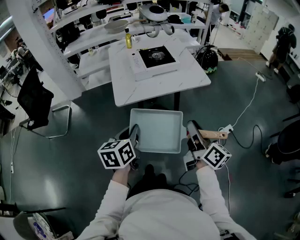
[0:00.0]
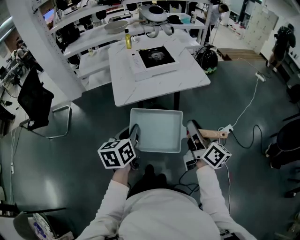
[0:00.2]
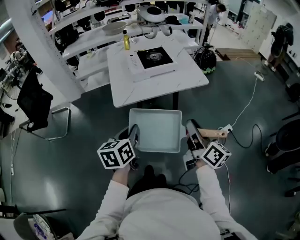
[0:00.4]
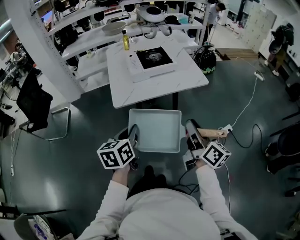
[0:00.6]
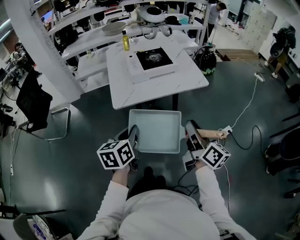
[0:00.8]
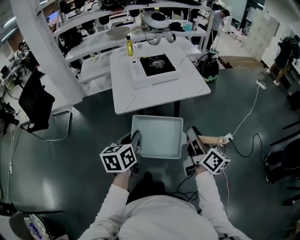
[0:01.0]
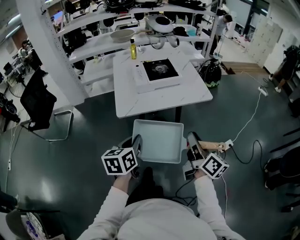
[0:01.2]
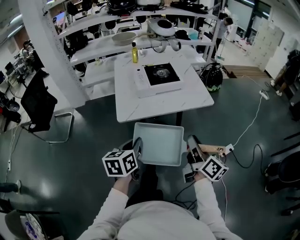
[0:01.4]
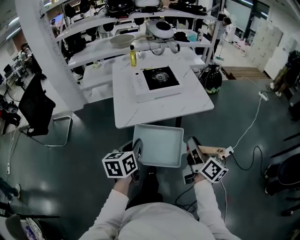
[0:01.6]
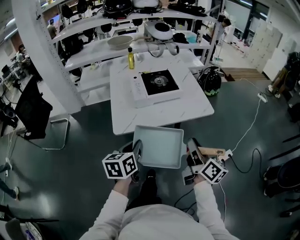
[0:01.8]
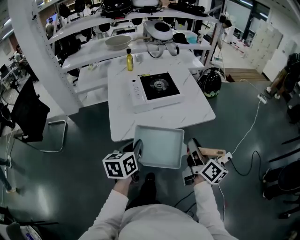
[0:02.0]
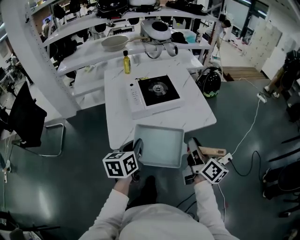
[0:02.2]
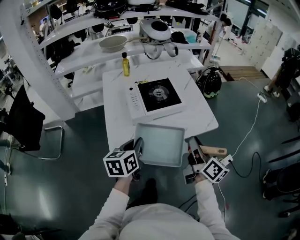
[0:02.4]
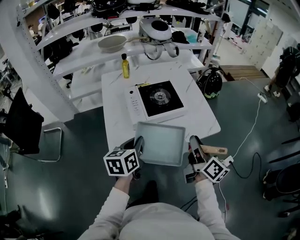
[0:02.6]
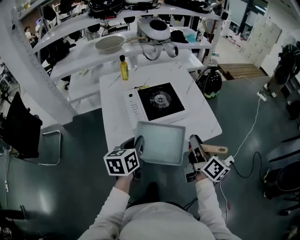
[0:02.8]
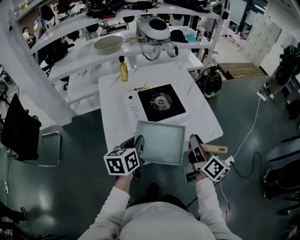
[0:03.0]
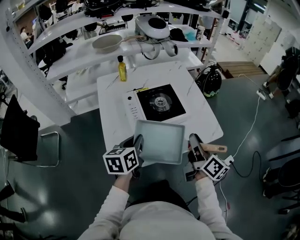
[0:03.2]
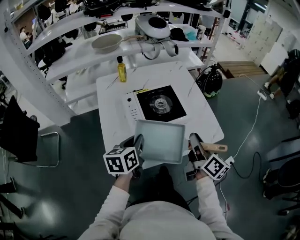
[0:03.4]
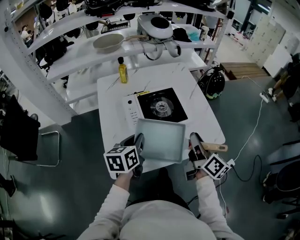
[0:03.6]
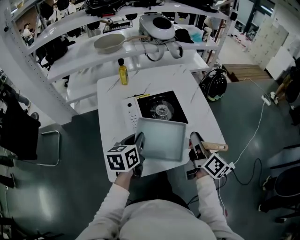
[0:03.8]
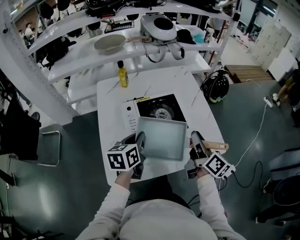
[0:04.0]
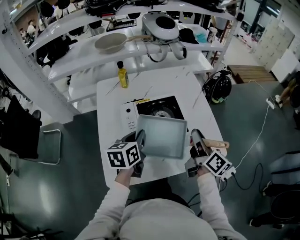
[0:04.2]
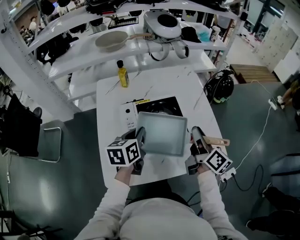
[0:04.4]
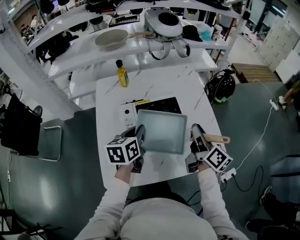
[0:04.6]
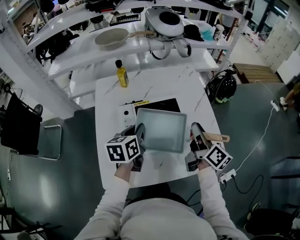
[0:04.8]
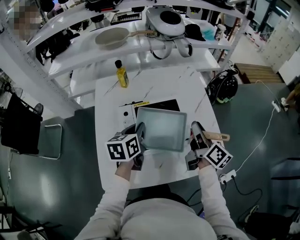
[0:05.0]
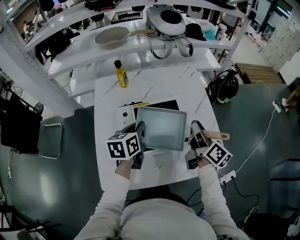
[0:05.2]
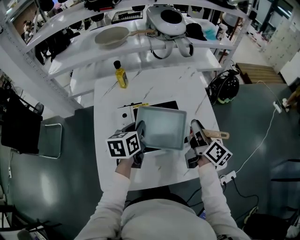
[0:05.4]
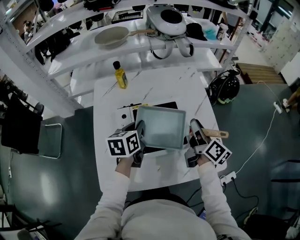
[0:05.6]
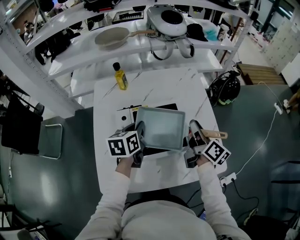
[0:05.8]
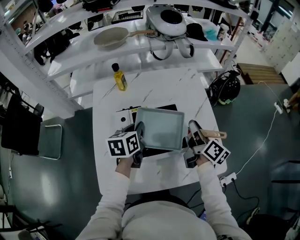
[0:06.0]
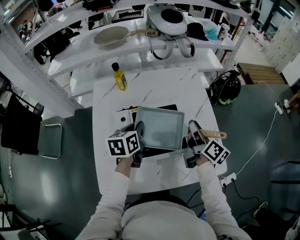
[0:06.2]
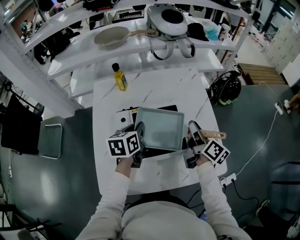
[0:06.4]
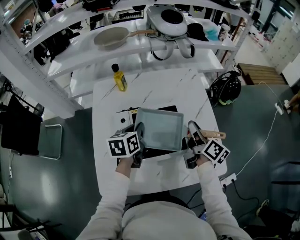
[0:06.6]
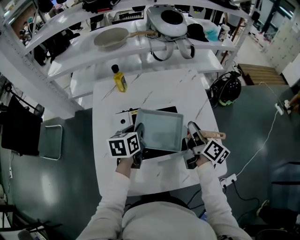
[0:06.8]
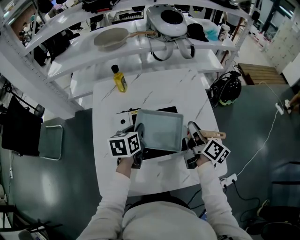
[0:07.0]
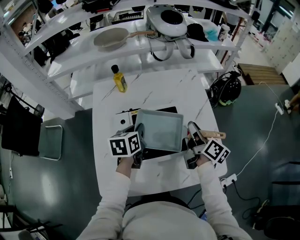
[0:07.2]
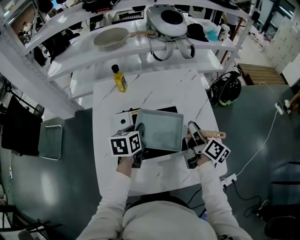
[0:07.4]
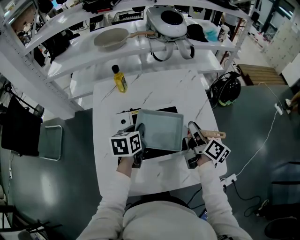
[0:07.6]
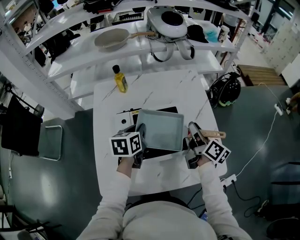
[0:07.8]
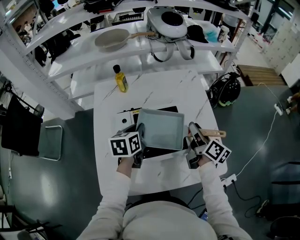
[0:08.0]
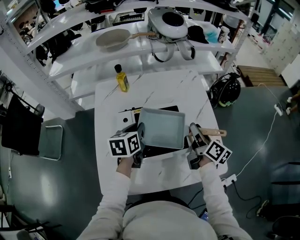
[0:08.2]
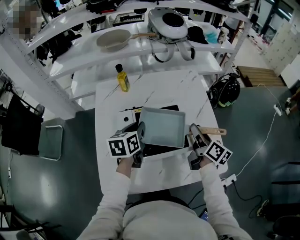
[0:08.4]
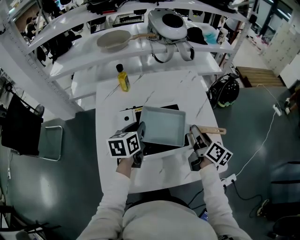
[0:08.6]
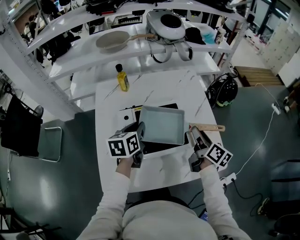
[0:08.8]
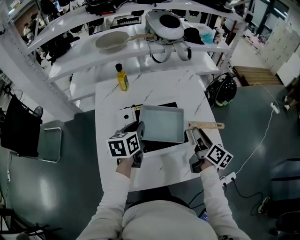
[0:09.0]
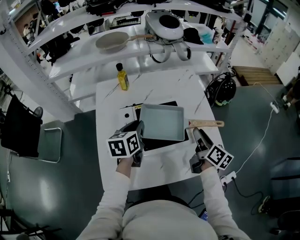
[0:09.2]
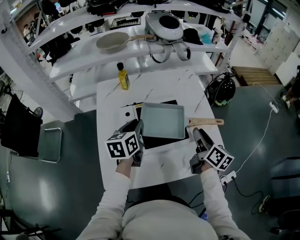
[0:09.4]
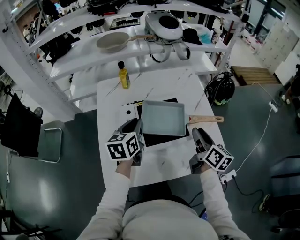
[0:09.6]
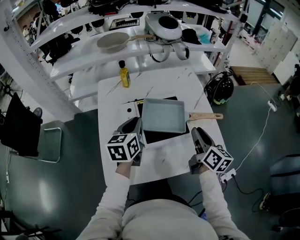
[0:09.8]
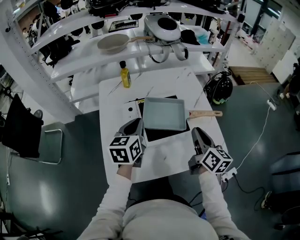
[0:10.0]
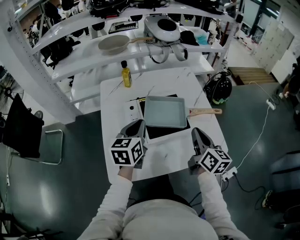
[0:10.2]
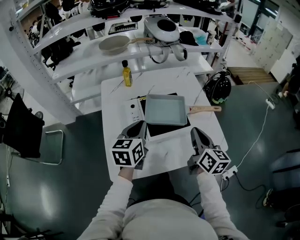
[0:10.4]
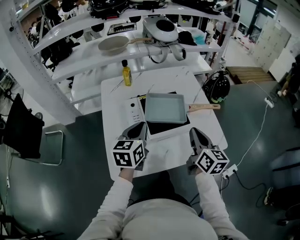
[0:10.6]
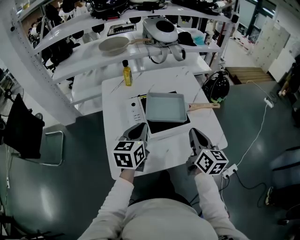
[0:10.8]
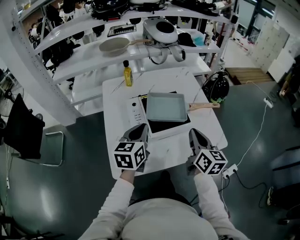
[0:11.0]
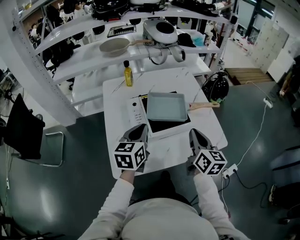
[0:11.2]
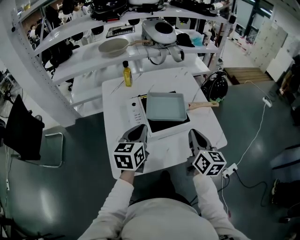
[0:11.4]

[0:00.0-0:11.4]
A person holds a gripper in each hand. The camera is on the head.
0:00.0 to 0:01.4: The right gripper changes place by roughly 5 cm.
0:01.4 to 0:02.8: The two grippers go about 30 cm forward.
0:02.8 to 0:04.2: The grippers both shift forward by some 15 cm.
0:04.2 to 0:05.6: Both grippers move forward, approximately 10 cm.
0:05.6 to 0:08.6: The grippers move only a little.
0:08.6 to 0:10.0: Both grippers travel together backward and upward, about 10 cm. The right gripper closes.
0:10.0 to 0:11.4: The grippers both shift backward by some 10 cm.

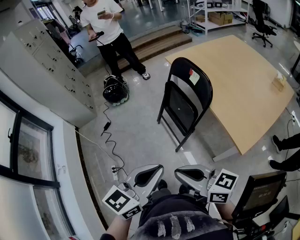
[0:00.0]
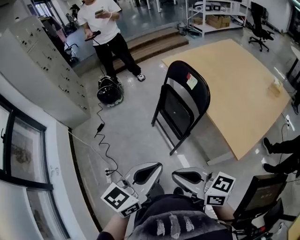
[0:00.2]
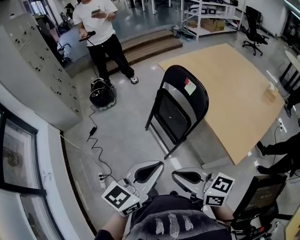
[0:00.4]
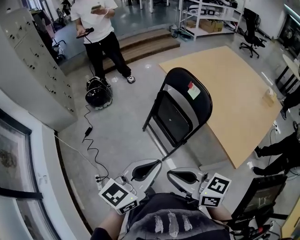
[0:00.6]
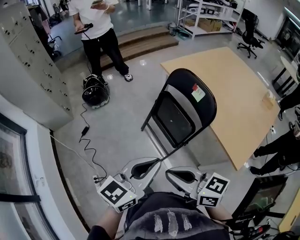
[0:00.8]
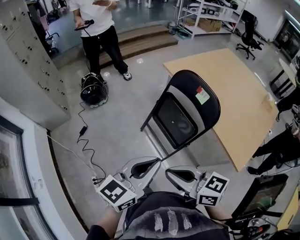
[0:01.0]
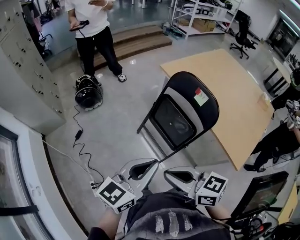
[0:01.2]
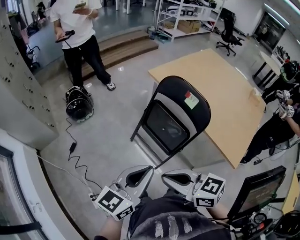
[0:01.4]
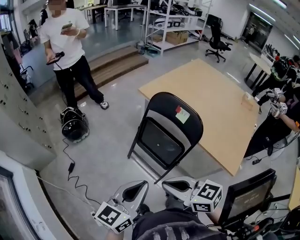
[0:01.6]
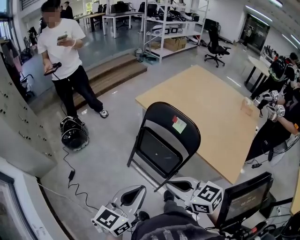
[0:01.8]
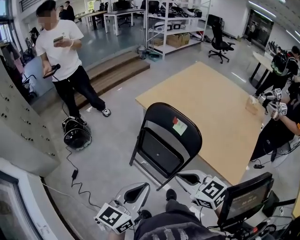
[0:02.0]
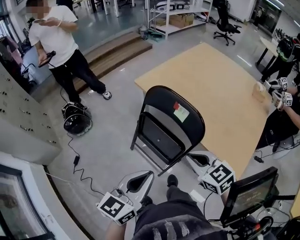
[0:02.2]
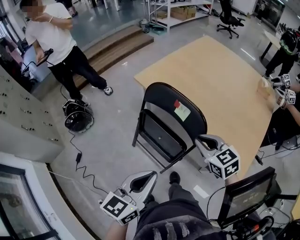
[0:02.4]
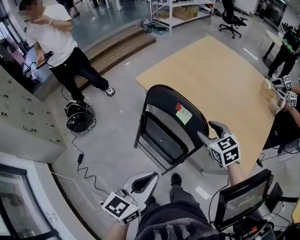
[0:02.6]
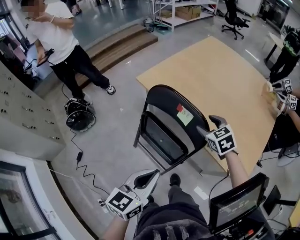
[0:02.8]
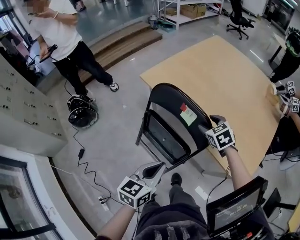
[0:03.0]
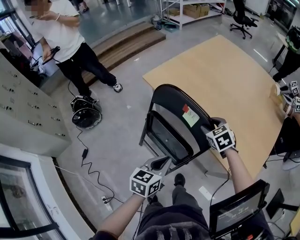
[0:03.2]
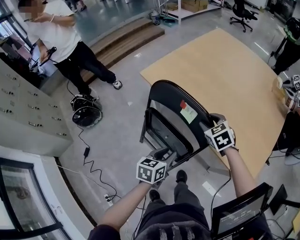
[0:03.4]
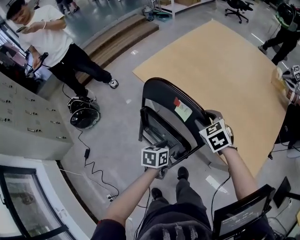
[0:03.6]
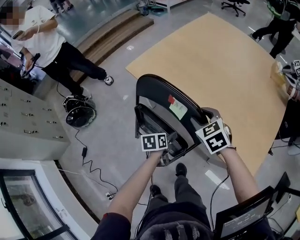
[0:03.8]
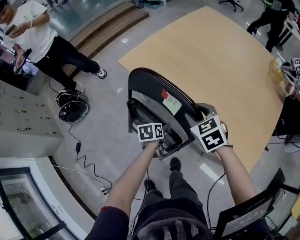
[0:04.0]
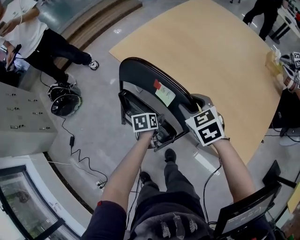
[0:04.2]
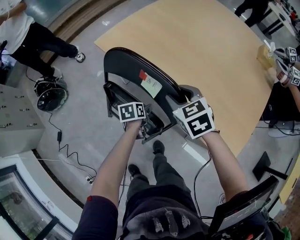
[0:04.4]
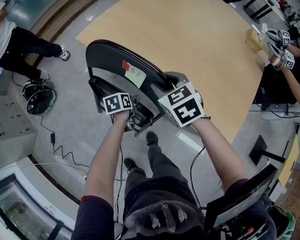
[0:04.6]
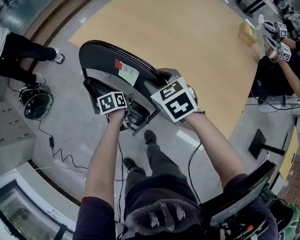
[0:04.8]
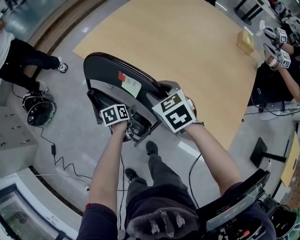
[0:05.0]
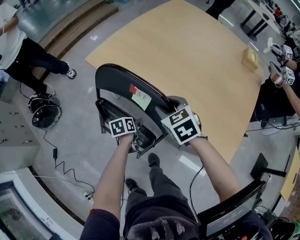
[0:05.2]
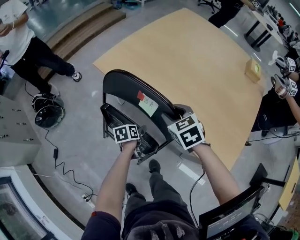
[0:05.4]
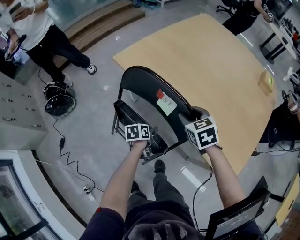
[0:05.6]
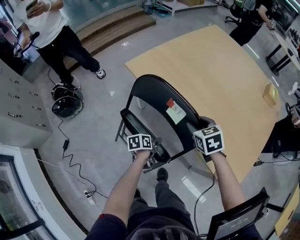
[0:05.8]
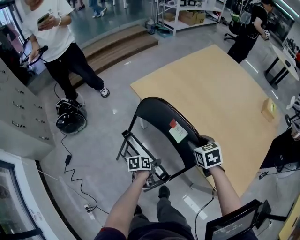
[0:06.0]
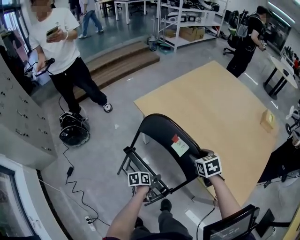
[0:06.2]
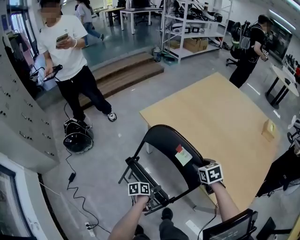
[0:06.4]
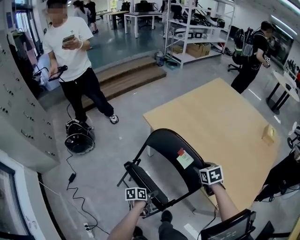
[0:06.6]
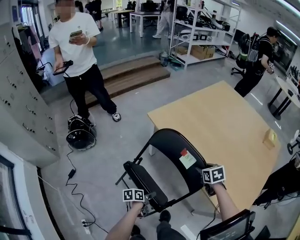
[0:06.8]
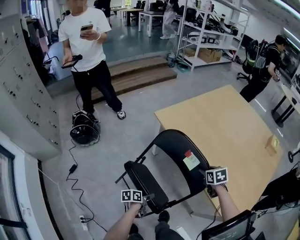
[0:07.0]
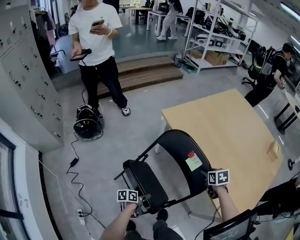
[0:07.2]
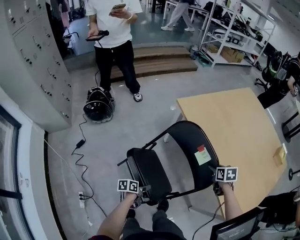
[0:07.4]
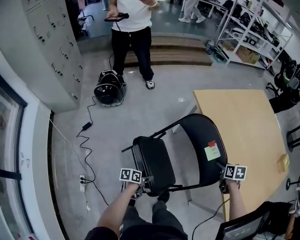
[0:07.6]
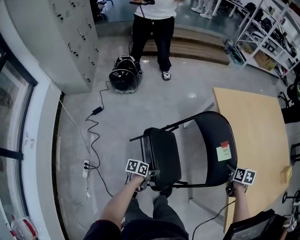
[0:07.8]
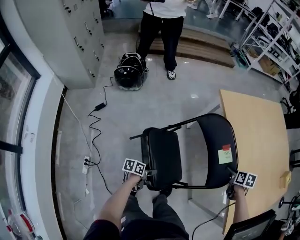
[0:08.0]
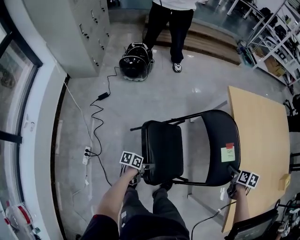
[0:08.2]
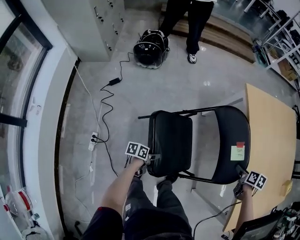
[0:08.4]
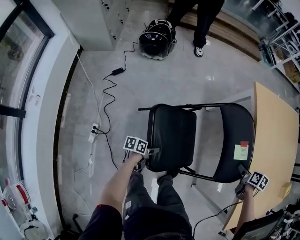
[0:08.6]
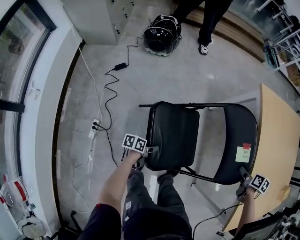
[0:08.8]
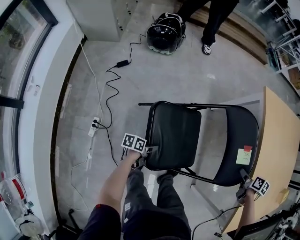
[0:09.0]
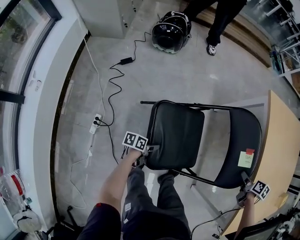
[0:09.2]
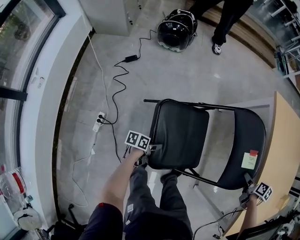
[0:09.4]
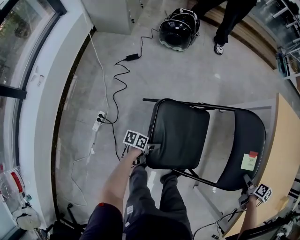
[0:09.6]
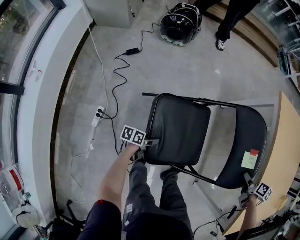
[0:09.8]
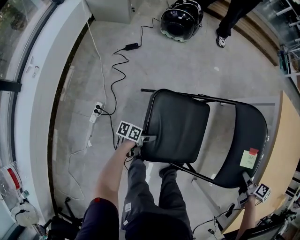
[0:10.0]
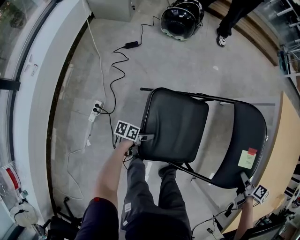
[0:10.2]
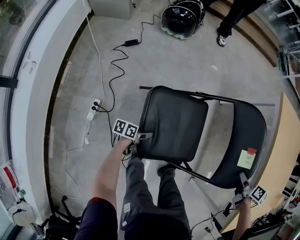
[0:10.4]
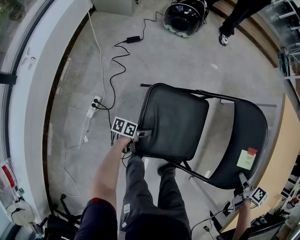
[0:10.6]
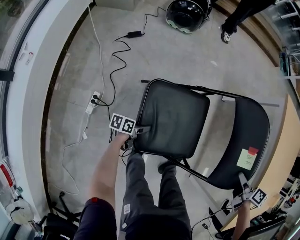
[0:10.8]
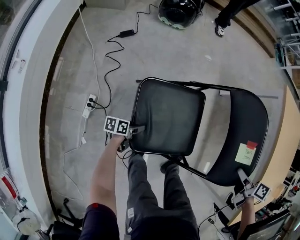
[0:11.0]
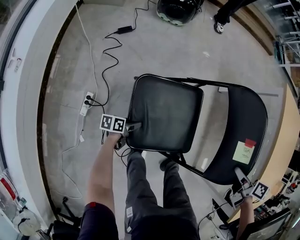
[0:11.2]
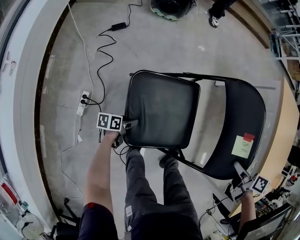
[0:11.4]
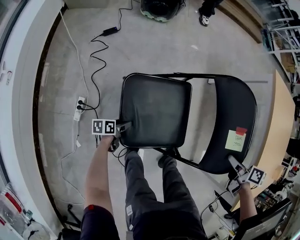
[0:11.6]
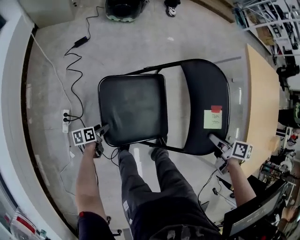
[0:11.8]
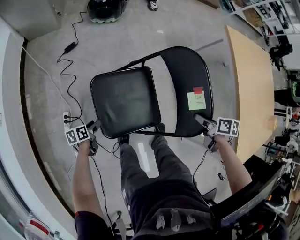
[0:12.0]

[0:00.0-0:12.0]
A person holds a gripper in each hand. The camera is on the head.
0:00.0 to 0:01.6: Both grippers travel together forward and to the left, approximately 25 cm. The right gripper changes its angle by some 30 degrees.
0:01.6 to 0:03.0: The left gripper goes some 25 cm forward, to the right and downward; the right gripper goes some 50 cm forward, to the right and downward, turns by about 40 degrees, and opens its fingers.
0:03.0 to 0:04.4: The left gripper travels downward and forward by some 35 cm, tilts its fingers about 30 degrees downward, and opens.
0:04.4 to 0:06.0: The left gripper heads backward, covering approximately 10 cm.
0:06.0 to 0:07.6: The right gripper shifts by approximately 5 cm. Meanwhile the left gripper heads backward and to the left, covering approximately 25 cm.
0:07.6 to 0:09.0: The right gripper is displaced to the left and backward by some 10 cm. The left gripper travels to the left, backward and downward by roughly 20 cm.
0:09.0 to 0:10.4: The right gripper moves to the left, some 10 cm. The left gripper is displaced to the left and downward by some 10 cm.
0:10.4 to 0:12.0: The two grippers go roughly 15 cm to the left.
